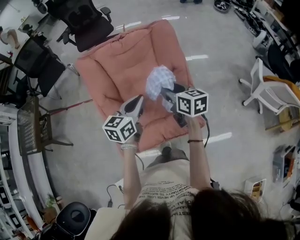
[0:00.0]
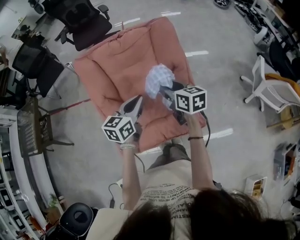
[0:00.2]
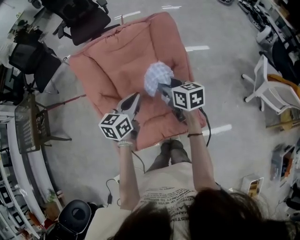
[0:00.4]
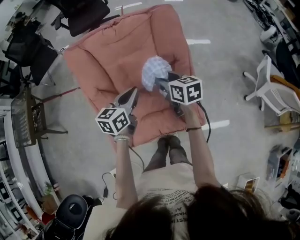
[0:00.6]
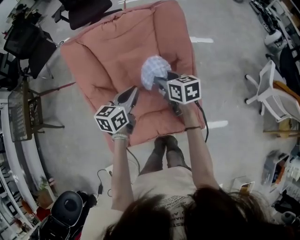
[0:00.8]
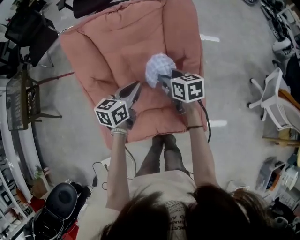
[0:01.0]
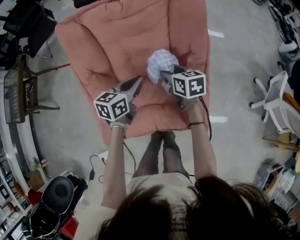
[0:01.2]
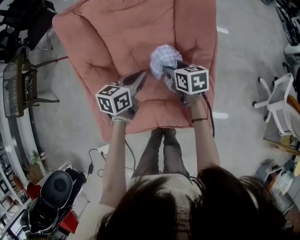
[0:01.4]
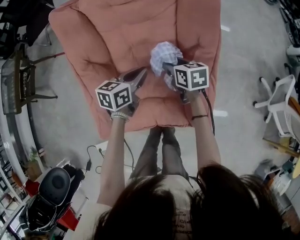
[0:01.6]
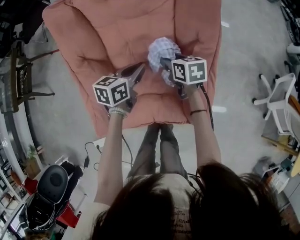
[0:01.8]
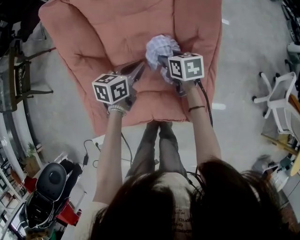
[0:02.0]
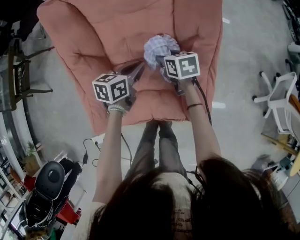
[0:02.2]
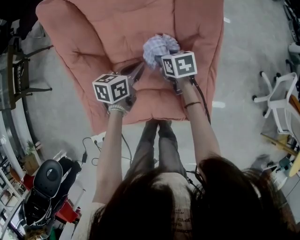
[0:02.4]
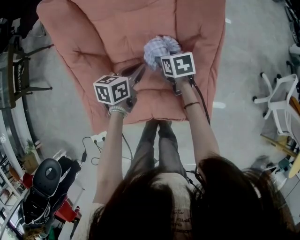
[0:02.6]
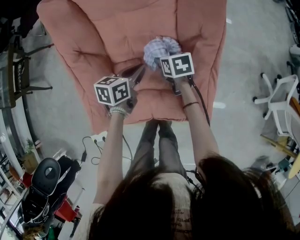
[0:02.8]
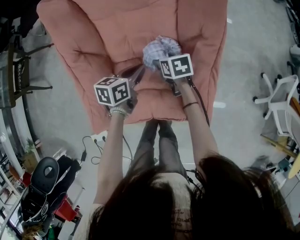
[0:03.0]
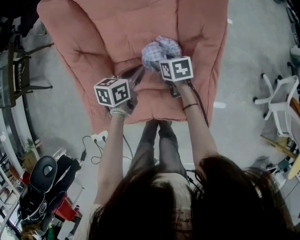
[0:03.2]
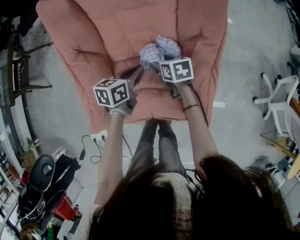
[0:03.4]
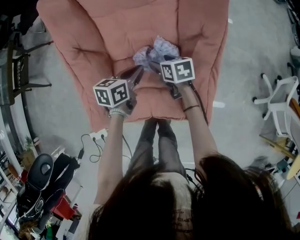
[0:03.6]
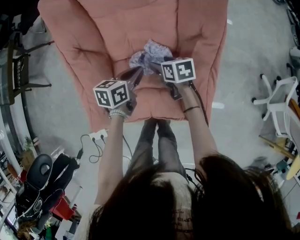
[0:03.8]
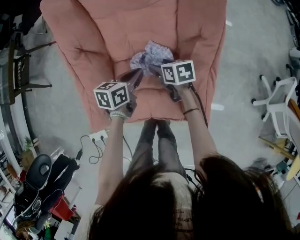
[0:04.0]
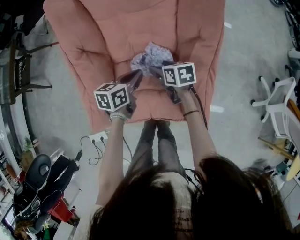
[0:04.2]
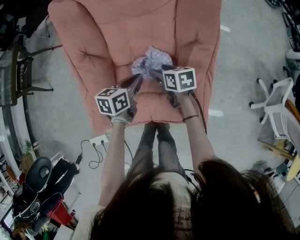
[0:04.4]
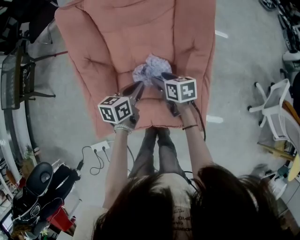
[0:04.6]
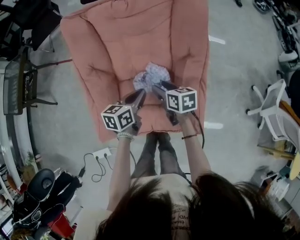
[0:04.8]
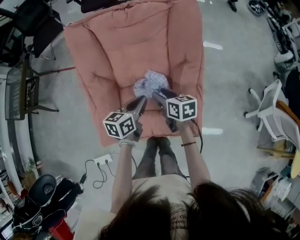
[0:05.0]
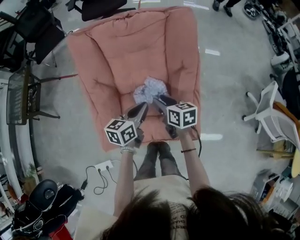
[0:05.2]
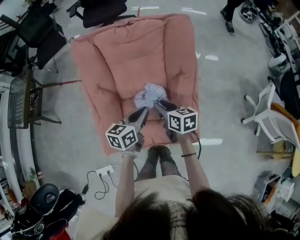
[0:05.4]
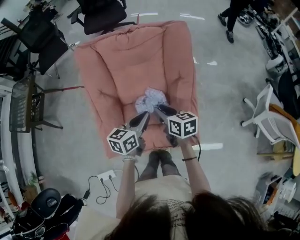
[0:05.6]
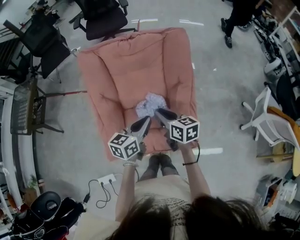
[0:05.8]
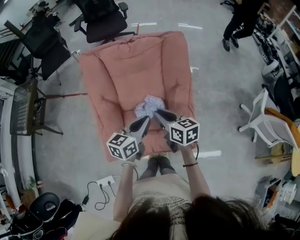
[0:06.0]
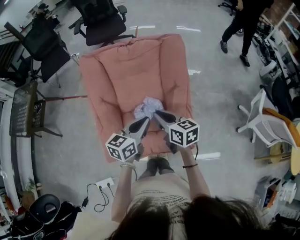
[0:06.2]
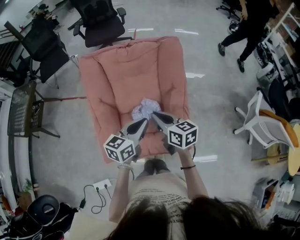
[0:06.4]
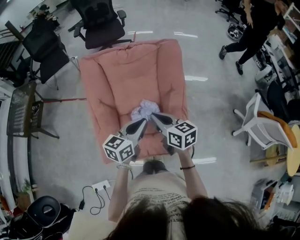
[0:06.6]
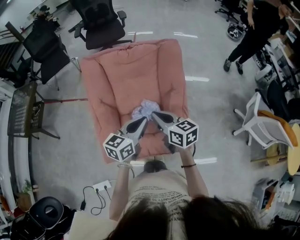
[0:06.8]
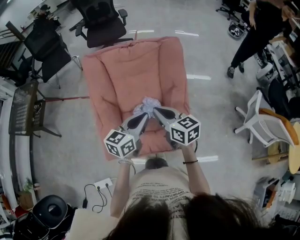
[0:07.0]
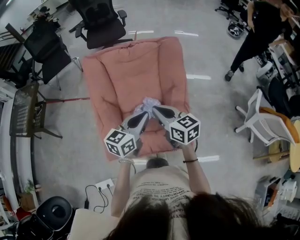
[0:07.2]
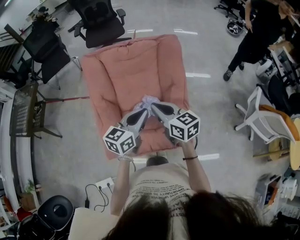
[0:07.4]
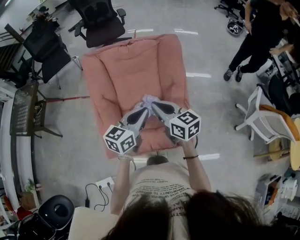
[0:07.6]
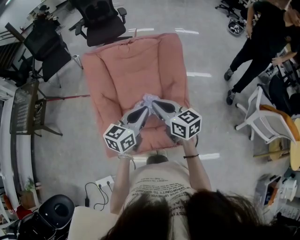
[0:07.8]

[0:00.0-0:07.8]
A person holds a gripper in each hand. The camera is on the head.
0:00.0 to 0:01.6: The two grippers go roughly 30 cm downward and forward. The right gripper swivels approximately 20 degrees, while the left gripper changes its angle by about 20 degrees.
0:01.6 to 0:03.2: Both grippers move downward, approximately 10 cm.
0:03.2 to 0:04.6: The left gripper is displaced upward by approximately 5 cm. Meanwhile the right gripper shifts roughly 10 cm upward and backward.
0:04.6 to 0:06.2: The grippers both shift upward by about 25 cm. The left gripper rotates roughly 20 degrees. Meanwhile the right gripper turns by about 20 degrees, and closes up.
0:06.2 to 0:07.8: The right gripper shifts some 5 cm upward; the left gripper ends up some 5 cm from where it was.

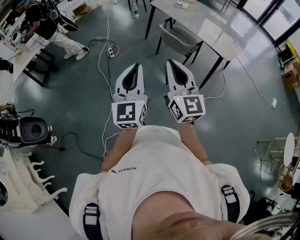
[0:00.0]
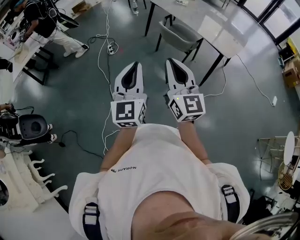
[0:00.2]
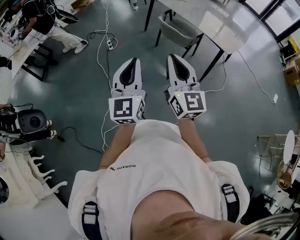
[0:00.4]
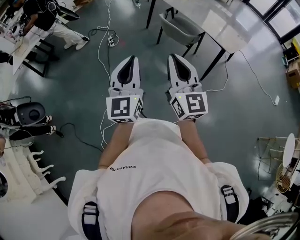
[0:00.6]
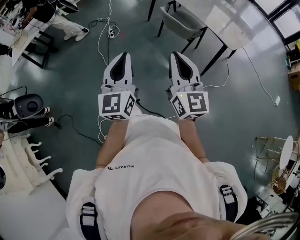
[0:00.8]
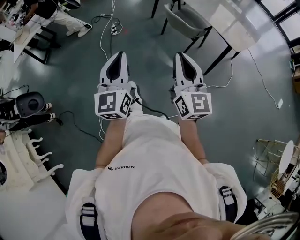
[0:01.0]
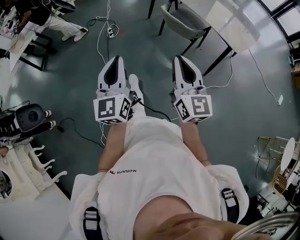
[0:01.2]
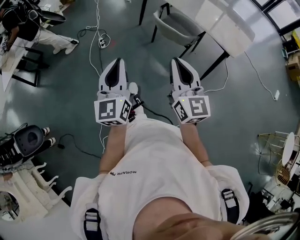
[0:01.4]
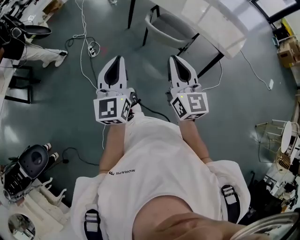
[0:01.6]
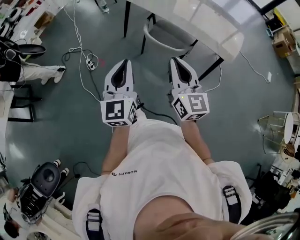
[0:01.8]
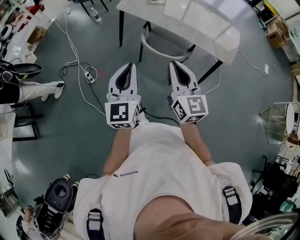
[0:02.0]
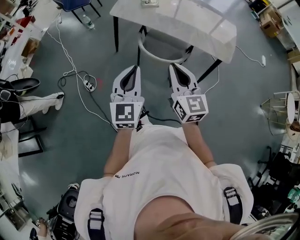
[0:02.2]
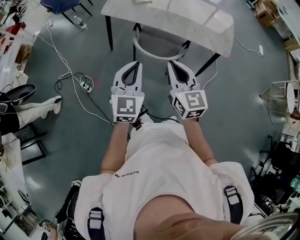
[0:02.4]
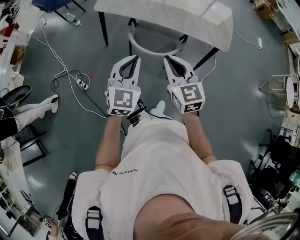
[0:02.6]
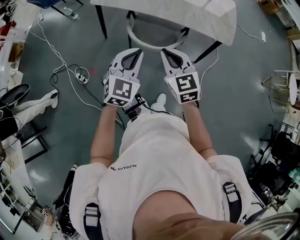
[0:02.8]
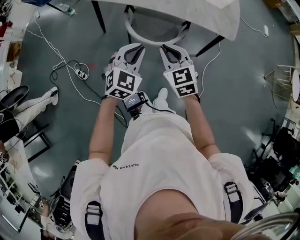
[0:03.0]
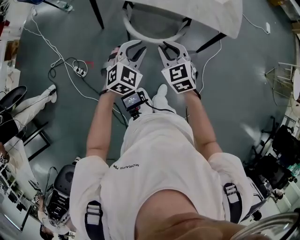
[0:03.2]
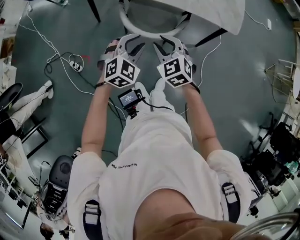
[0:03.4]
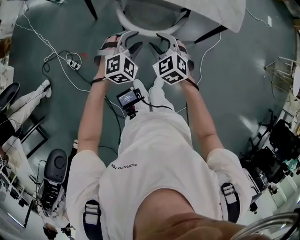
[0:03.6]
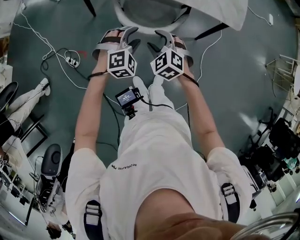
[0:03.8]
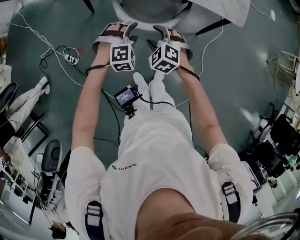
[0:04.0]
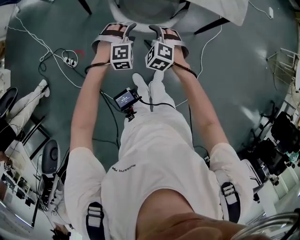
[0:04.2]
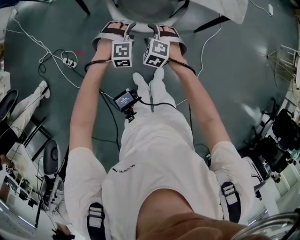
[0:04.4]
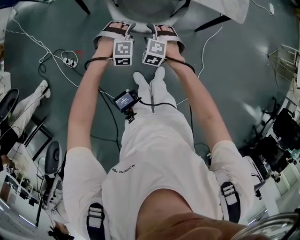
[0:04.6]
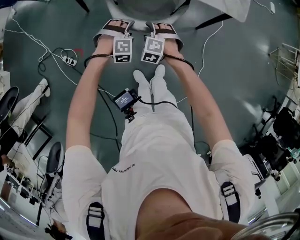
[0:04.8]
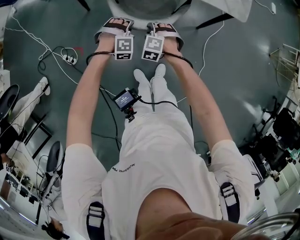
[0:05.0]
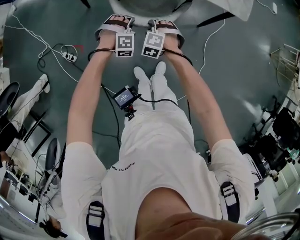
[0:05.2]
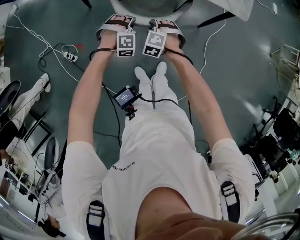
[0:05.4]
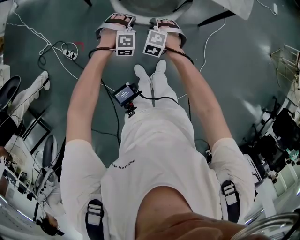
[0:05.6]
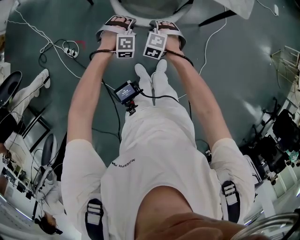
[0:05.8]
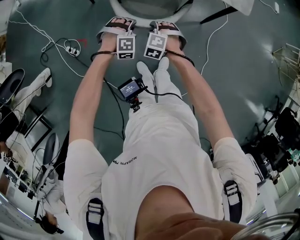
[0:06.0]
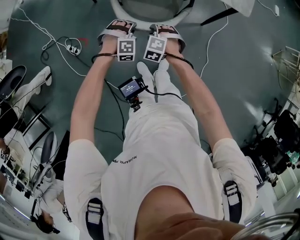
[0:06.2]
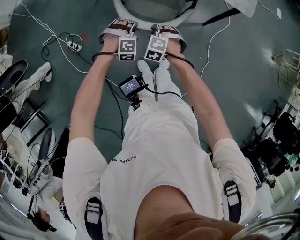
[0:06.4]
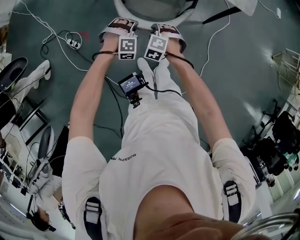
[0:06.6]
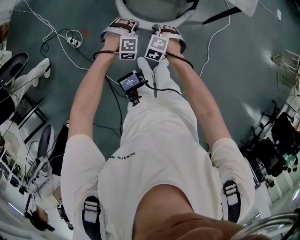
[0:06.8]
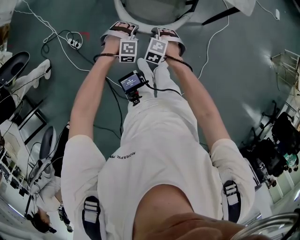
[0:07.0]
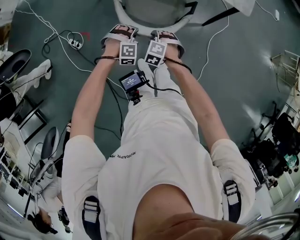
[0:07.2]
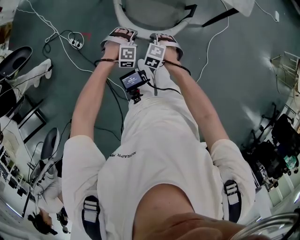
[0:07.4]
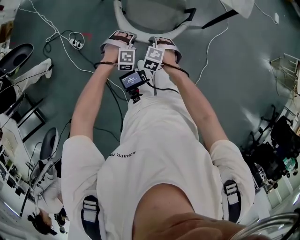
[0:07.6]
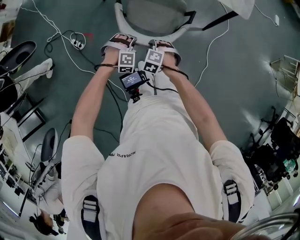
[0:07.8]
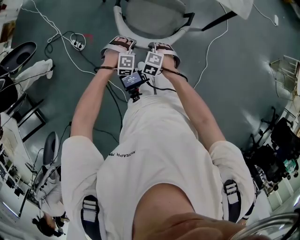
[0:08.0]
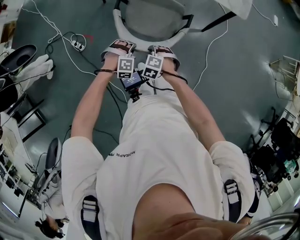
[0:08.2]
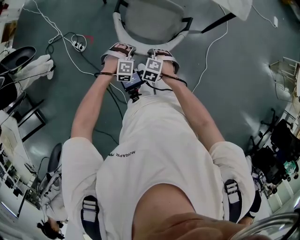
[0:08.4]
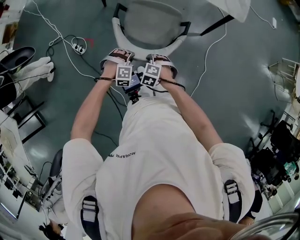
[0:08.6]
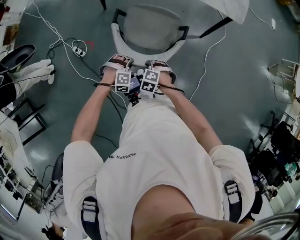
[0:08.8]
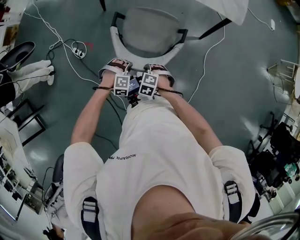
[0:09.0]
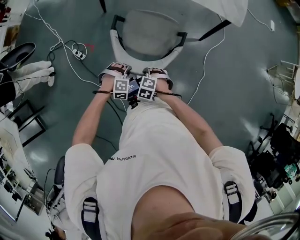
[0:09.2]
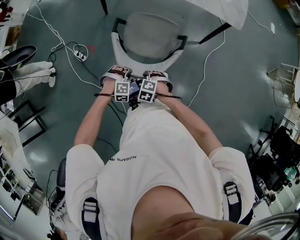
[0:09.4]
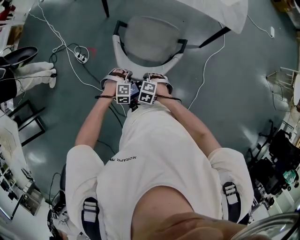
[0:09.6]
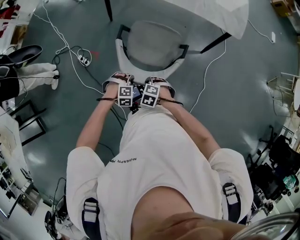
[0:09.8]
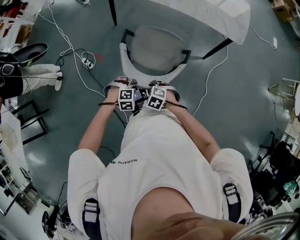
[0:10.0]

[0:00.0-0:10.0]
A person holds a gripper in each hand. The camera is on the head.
0:00.0 to 0:01.4: The left gripper moves forward, some 20 cm. The right gripper goes approximately 15 cm forward and downward.
0:01.4 to 0:02.8: The left gripper moves approximately 40 cm, and changes its angle by roughly 60 degrees. Meanwhile the right gripper ends up approximately 40 cm from where it was, and swivels roughly 40 degrees.
0:02.8 to 0:04.2: Both grippers travel together downward, some 25 cm. The right gripper angles its fingers downward, by approximately 30 degrees, and opens up, while the left gripper points its fingers roughly 40 degrees further downward, and opens its fingers.
0:04.2 to 0:05.8: The grippers both shift downward by approximately 10 cm. The right gripper closes up. The left gripper closes.
0:05.8 to 0:07.2: Both grippers move backward, approximately 10 cm.
0:07.2 to 0:08.6: The grippers both shift backward by about 10 cm.
0:08.6 to 0:10.0: The left gripper shifts by roughly 5 cm, and swivels roughly 20 degrees. Meanwhile the right gripper ends up about 5 cm from where it was.

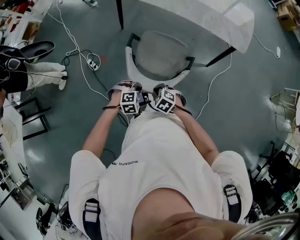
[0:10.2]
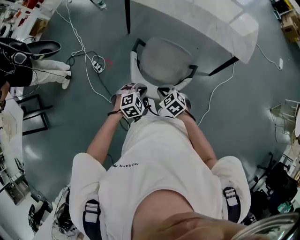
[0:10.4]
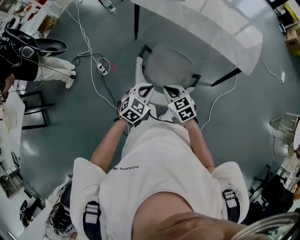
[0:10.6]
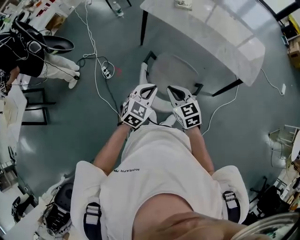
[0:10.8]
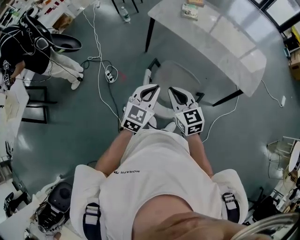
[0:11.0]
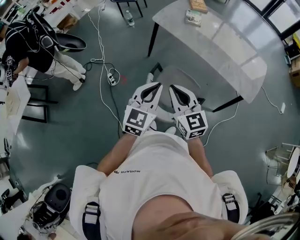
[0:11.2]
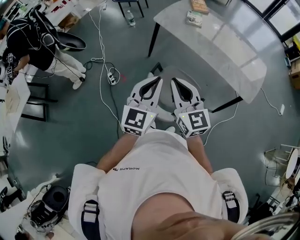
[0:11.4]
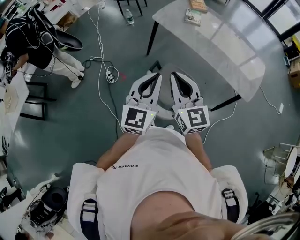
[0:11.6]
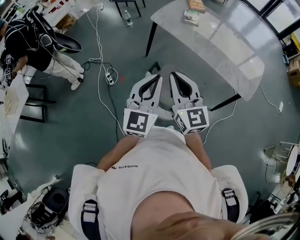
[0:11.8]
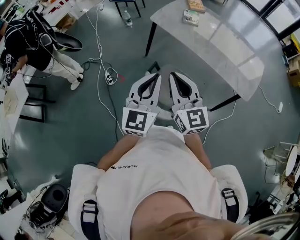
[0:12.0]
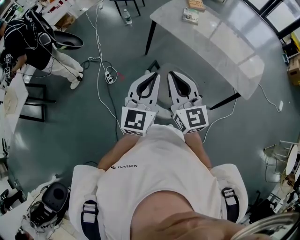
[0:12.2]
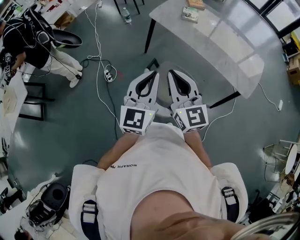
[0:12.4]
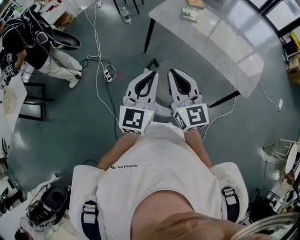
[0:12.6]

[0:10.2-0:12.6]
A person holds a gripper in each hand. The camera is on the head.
0:10.2 to 0:11.4: Both grippers travel together upward, approximately 40 cm. The left gripper tilts its fingers roughly 60 degrees upward. The right gripper points its fingers about 60 degrees further upward.
0:11.4 to 0:12.6: The grippers make only small movements.

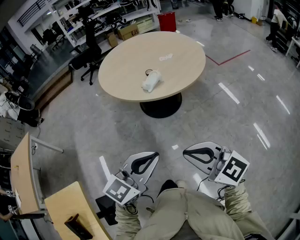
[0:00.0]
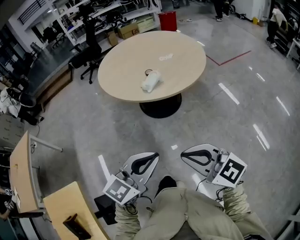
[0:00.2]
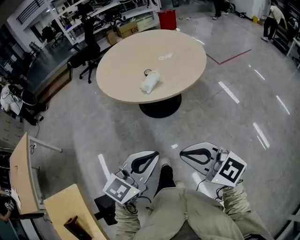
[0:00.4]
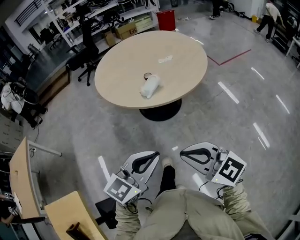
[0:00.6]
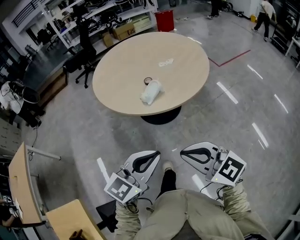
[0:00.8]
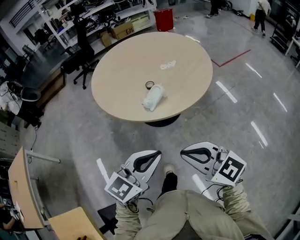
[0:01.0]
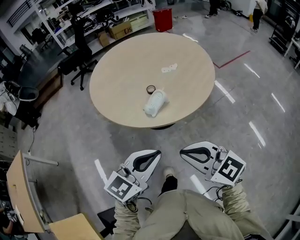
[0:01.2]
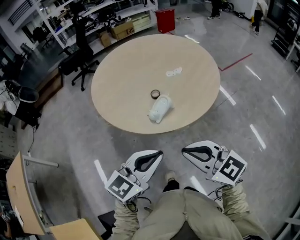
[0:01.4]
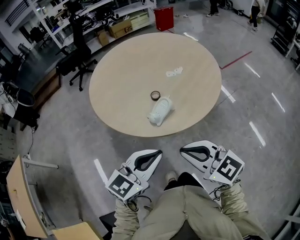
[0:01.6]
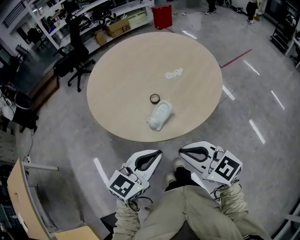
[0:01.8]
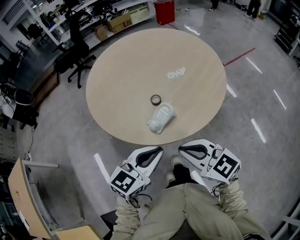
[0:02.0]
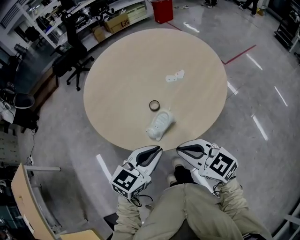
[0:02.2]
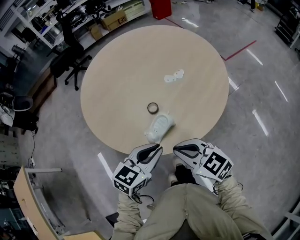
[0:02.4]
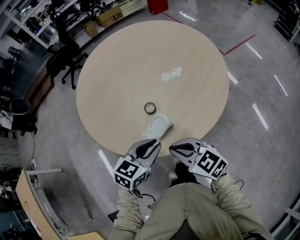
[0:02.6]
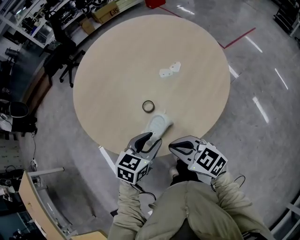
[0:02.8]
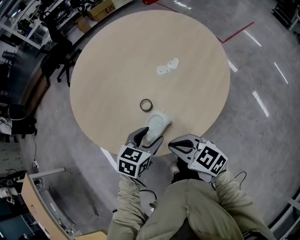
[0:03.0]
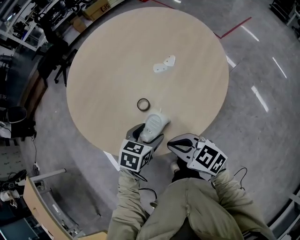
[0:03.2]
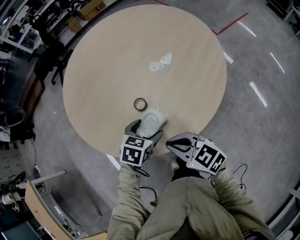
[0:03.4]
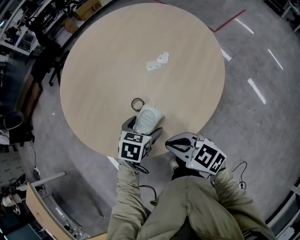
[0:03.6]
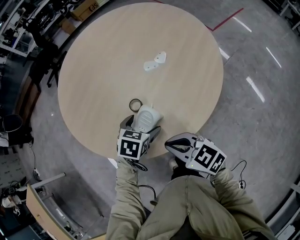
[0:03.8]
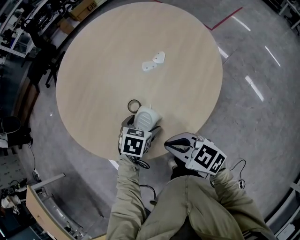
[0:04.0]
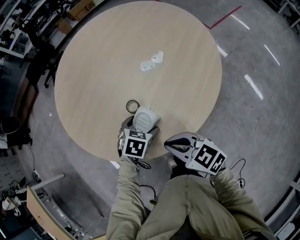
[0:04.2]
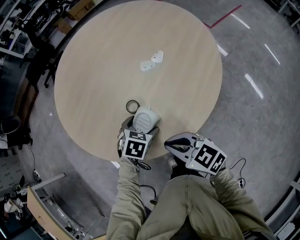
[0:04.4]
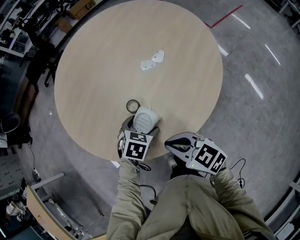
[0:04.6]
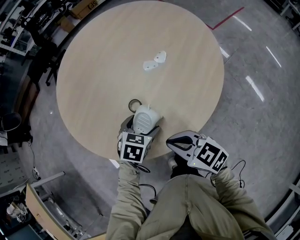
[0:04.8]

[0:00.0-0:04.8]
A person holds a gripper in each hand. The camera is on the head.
0:00.0 to 0:01.6: Both grippers travel together forward, some 30 cm.
0:01.6 to 0:03.2: Both grippers move forward and downward, approximately 25 cm. The right gripper rotates roughly 20 degrees, while the left gripper angles its fingers downward, by approximately 40 degrees, and opens up.
0:03.2 to 0:04.8: The left gripper moves approximately 5 cm.
